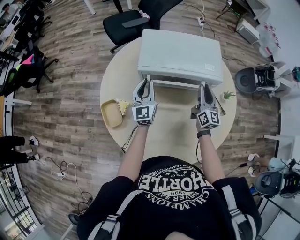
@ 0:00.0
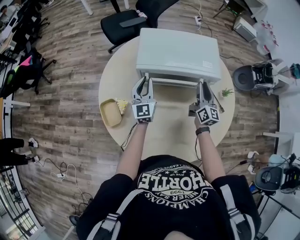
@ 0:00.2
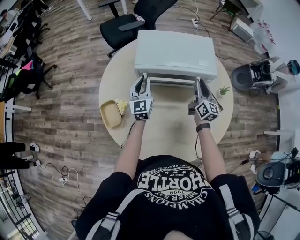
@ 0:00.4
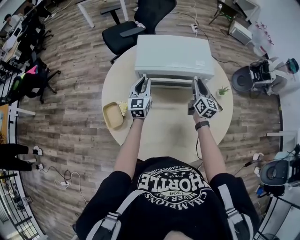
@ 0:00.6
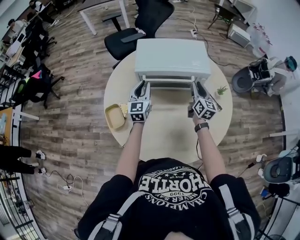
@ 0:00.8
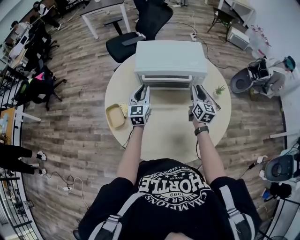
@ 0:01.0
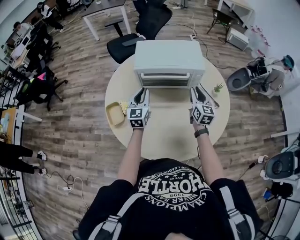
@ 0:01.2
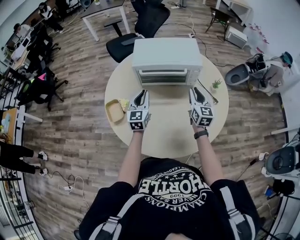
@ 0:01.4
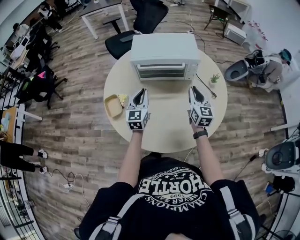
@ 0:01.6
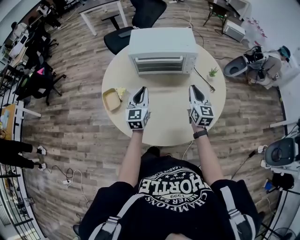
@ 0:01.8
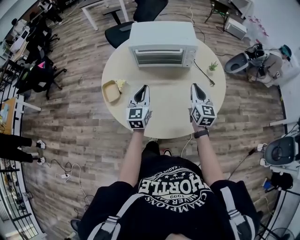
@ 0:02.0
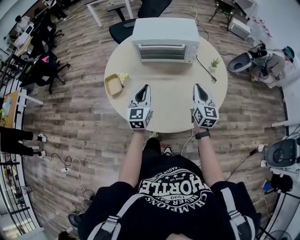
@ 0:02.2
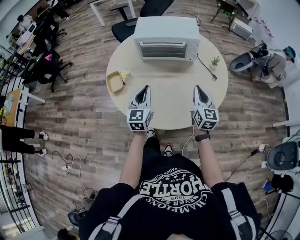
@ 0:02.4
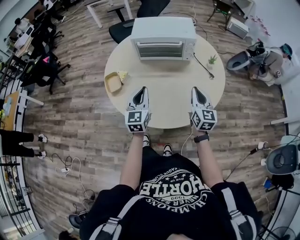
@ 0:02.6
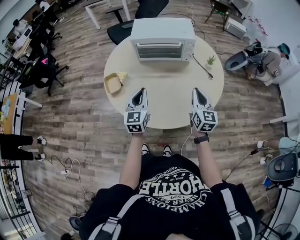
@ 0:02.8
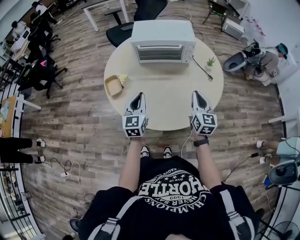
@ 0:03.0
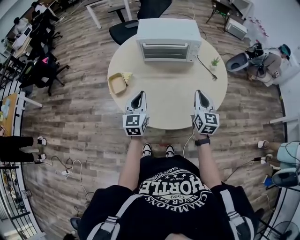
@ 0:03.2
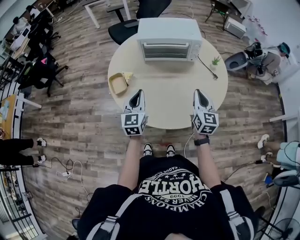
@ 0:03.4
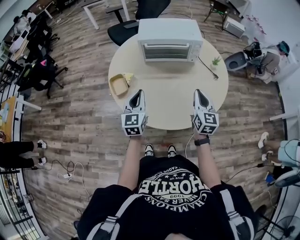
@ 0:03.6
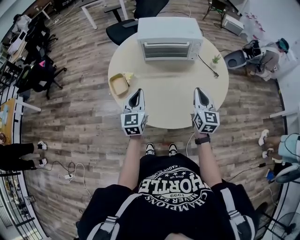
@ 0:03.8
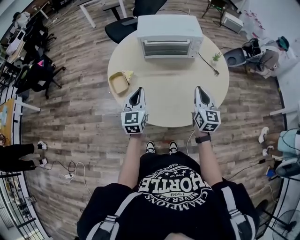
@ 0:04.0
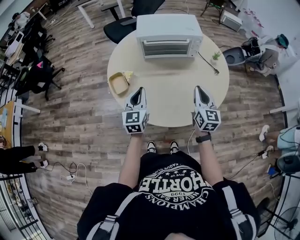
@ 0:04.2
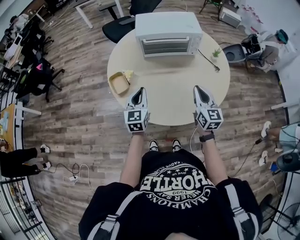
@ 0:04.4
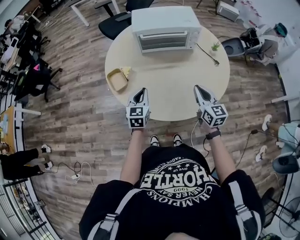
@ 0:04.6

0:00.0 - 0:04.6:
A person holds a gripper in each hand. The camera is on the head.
0:00.0 - 0:01.6: The grippers both shift backward by approximately 20 cm.
0:01.6 - 0:03.0: Both grippers travel together backward, roughly 20 cm.
0:03.0 - 0:04.6: The right gripper travels to the left by about 5 cm. The left gripper shifts approximately 10 cm downward and to the left.

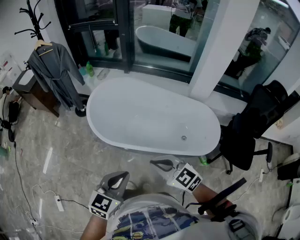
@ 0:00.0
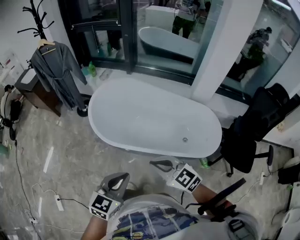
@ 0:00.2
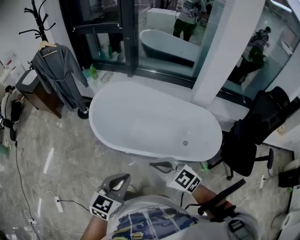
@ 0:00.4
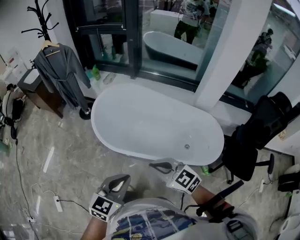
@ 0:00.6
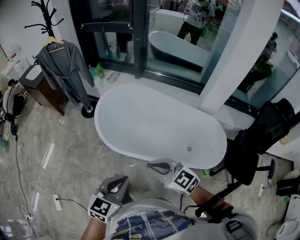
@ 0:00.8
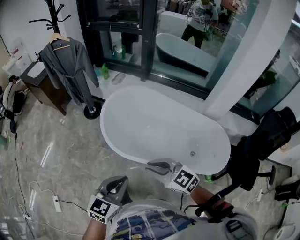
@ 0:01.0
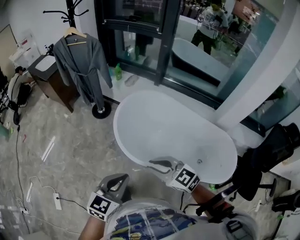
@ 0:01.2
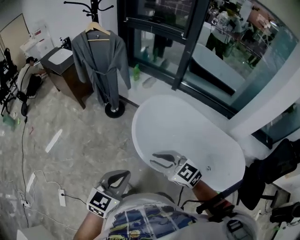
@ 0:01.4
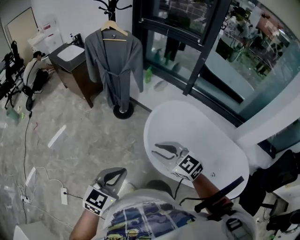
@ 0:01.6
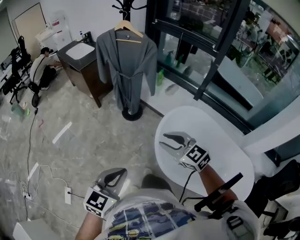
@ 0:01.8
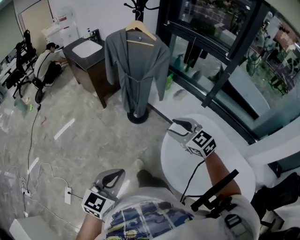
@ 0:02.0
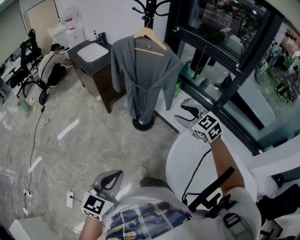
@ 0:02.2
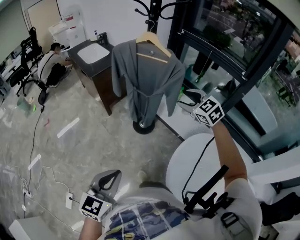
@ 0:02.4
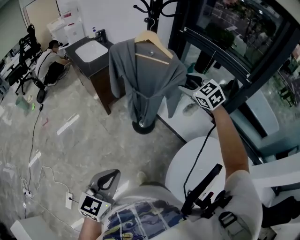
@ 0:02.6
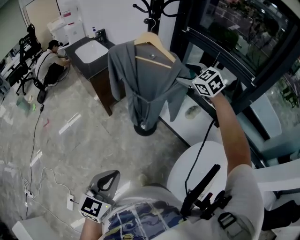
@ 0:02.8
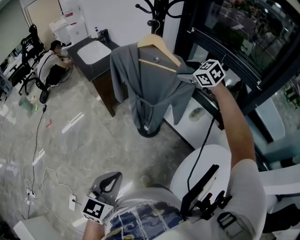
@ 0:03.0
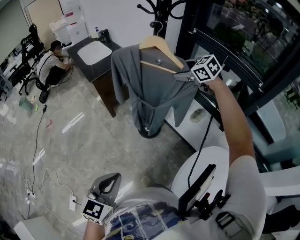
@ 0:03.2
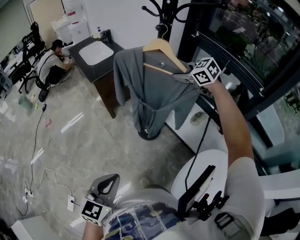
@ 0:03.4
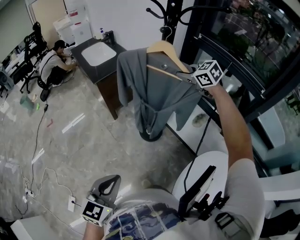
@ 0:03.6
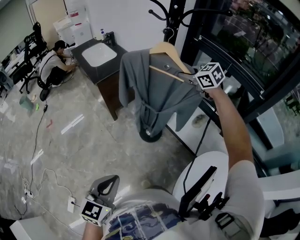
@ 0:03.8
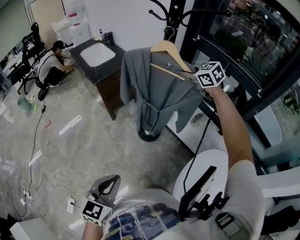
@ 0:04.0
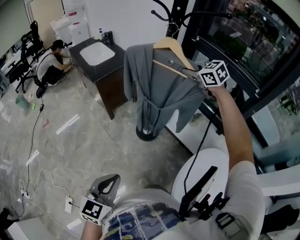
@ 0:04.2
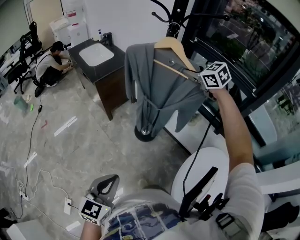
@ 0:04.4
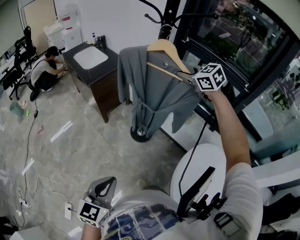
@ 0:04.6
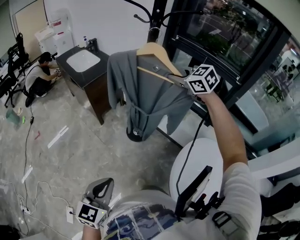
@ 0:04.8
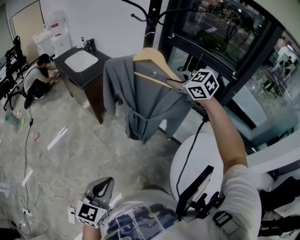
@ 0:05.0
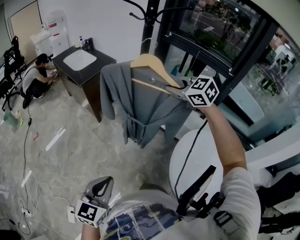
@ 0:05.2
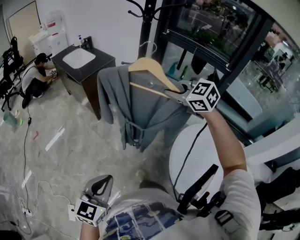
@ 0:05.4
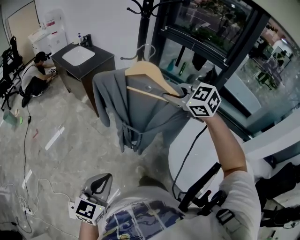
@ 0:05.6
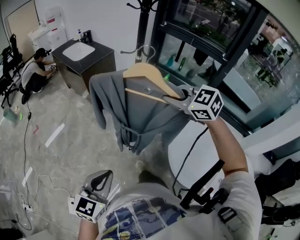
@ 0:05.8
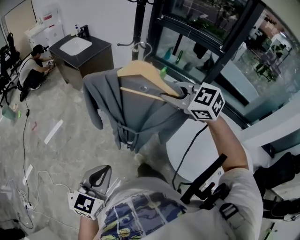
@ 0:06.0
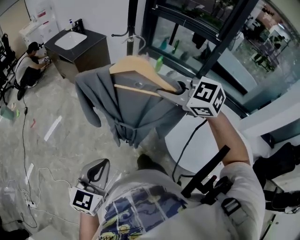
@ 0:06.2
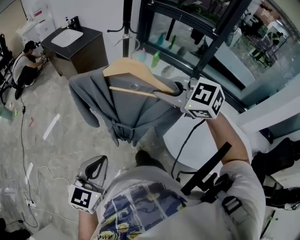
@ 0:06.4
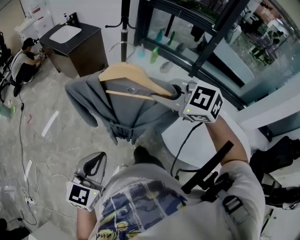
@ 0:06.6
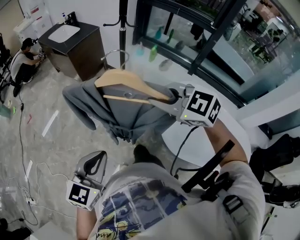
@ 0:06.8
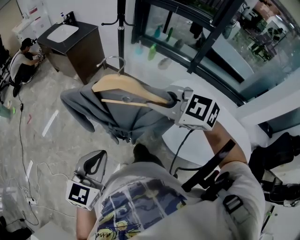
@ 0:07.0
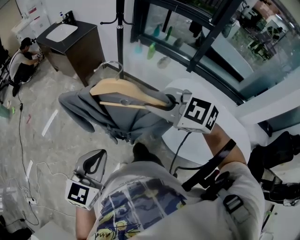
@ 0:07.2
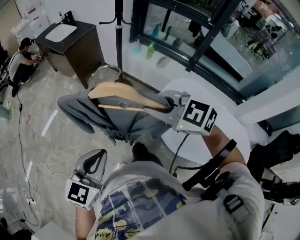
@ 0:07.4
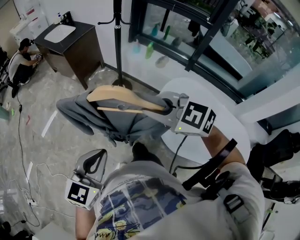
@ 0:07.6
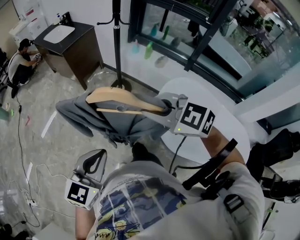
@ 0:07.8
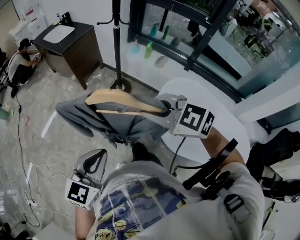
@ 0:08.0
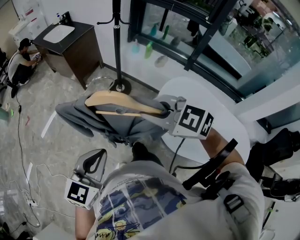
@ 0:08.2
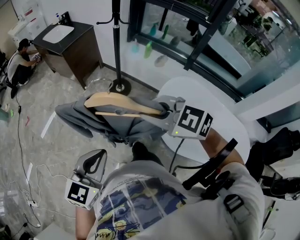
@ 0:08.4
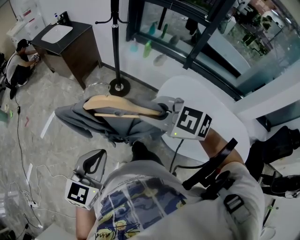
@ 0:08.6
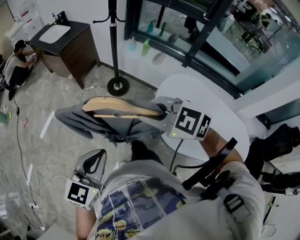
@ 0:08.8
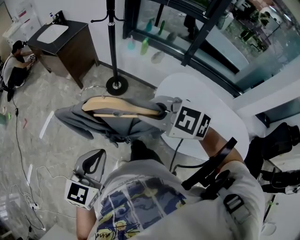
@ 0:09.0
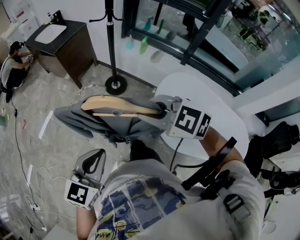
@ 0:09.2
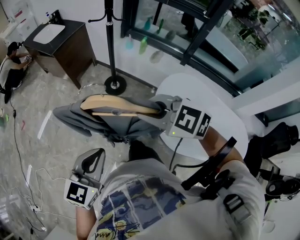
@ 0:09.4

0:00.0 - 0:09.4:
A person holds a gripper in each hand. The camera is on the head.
0:00.0 - 0:01.6: The left gripper travels to the left and forward by roughly 40 cm, while the right gripper shifts some 40 cm forward and to the left.
0:01.6 - 0:03.2: The left gripper heads forward, covering some 35 cm, and changes its angle by approximately 20 degrees; the right gripper heads forward, covering some 70 cm, and opens its fingers.
0:03.2 - 0:04.8: The right gripper travels backward, upward and to the left by roughly 15 cm, and closes its fingers. Meanwhile the left gripper shifts some 10 cm to the left and backward.
0:04.8 - 0:06.2: The left gripper travels backward by some 15 cm; the right gripper heads backward, covering about 35 cm.
0:06.2 - 0:07.8: The right gripper heads backward, covering roughly 10 cm.
0:07.8 - 0:09.4: The grippers make only small movements.

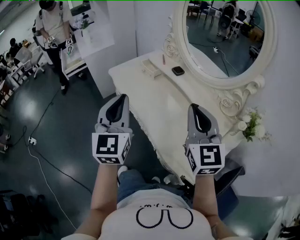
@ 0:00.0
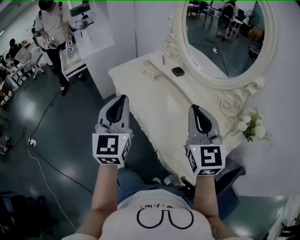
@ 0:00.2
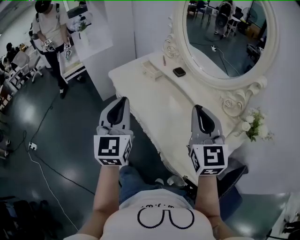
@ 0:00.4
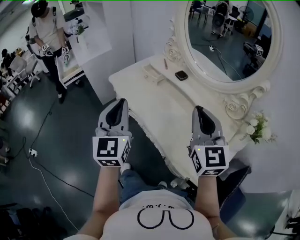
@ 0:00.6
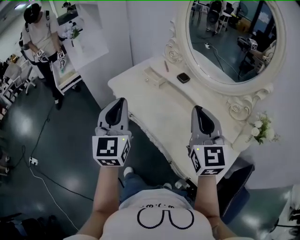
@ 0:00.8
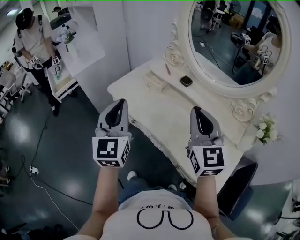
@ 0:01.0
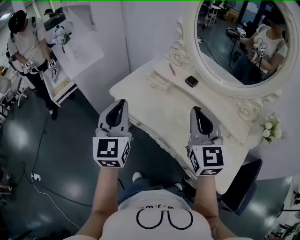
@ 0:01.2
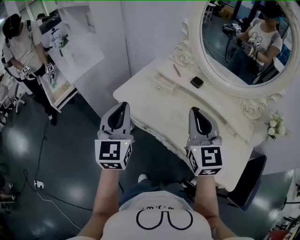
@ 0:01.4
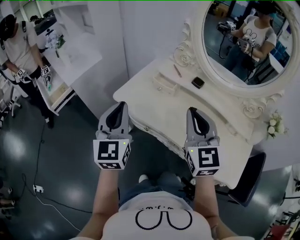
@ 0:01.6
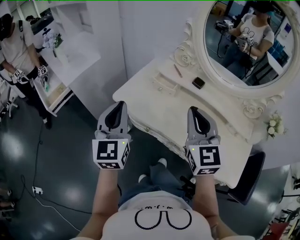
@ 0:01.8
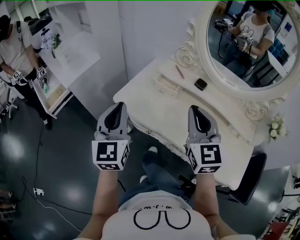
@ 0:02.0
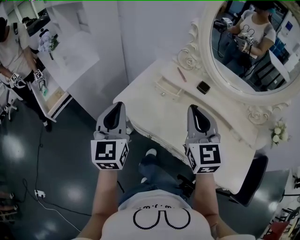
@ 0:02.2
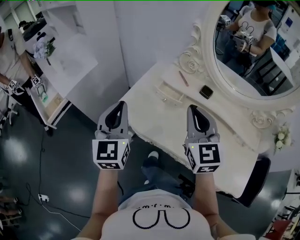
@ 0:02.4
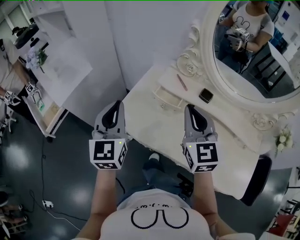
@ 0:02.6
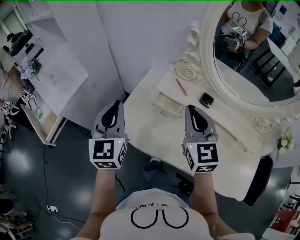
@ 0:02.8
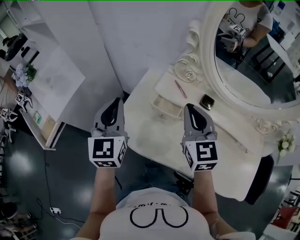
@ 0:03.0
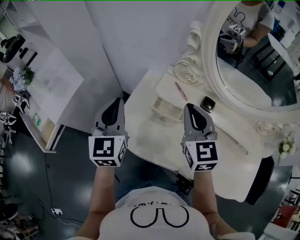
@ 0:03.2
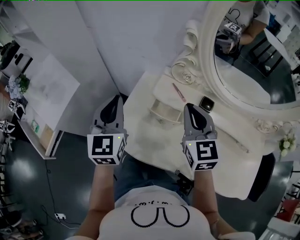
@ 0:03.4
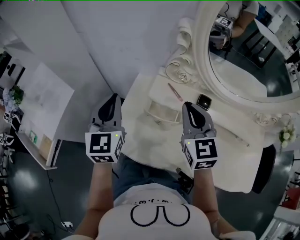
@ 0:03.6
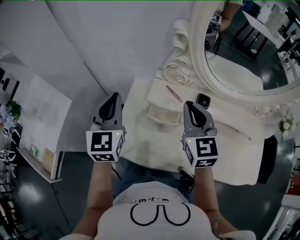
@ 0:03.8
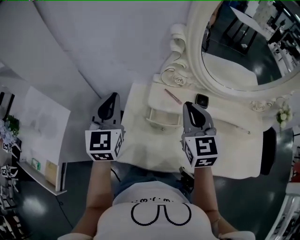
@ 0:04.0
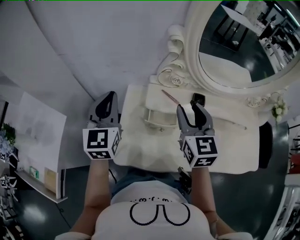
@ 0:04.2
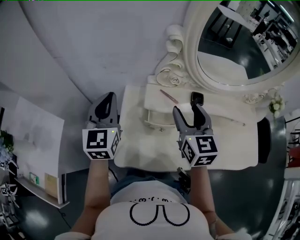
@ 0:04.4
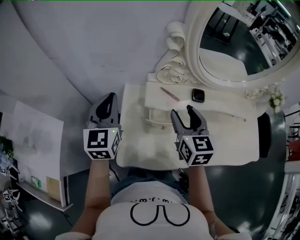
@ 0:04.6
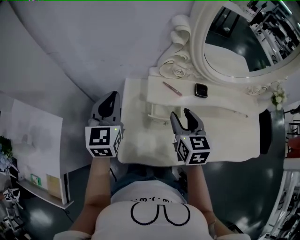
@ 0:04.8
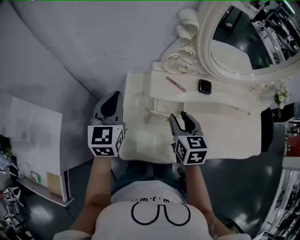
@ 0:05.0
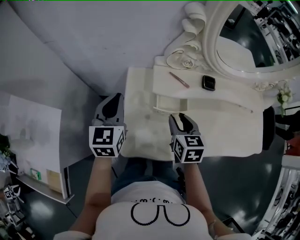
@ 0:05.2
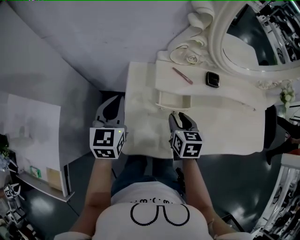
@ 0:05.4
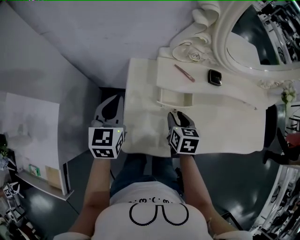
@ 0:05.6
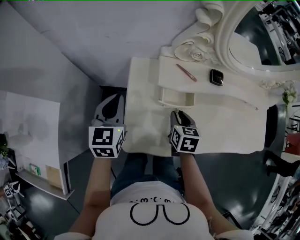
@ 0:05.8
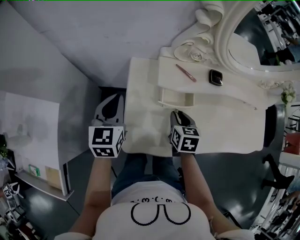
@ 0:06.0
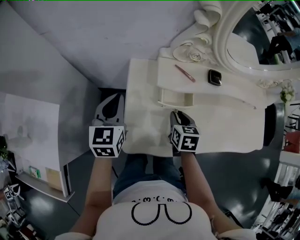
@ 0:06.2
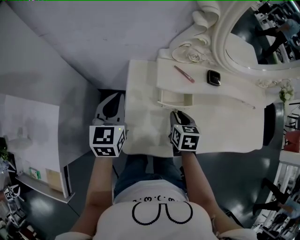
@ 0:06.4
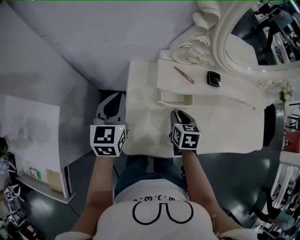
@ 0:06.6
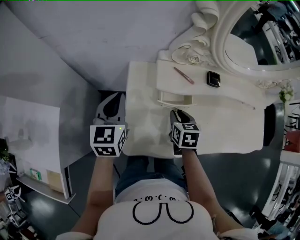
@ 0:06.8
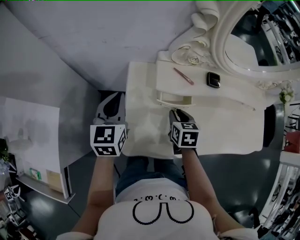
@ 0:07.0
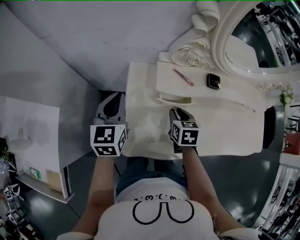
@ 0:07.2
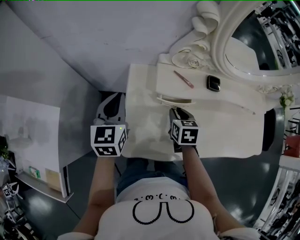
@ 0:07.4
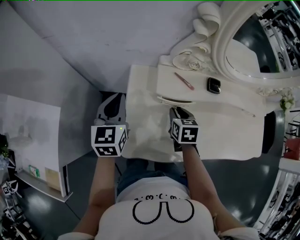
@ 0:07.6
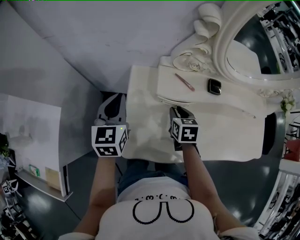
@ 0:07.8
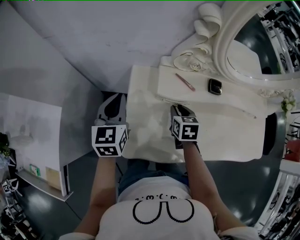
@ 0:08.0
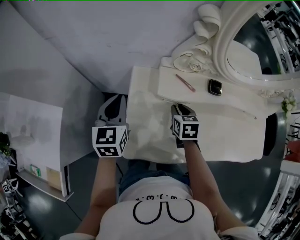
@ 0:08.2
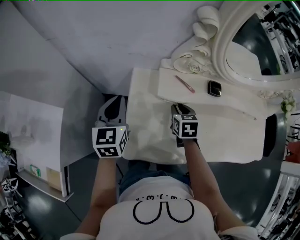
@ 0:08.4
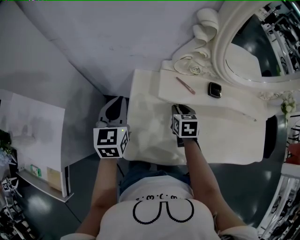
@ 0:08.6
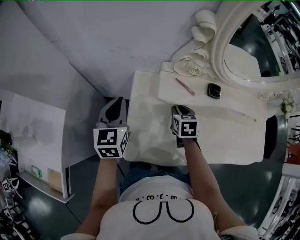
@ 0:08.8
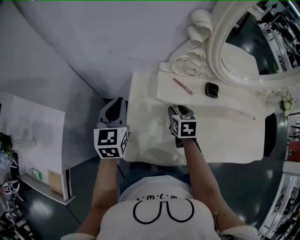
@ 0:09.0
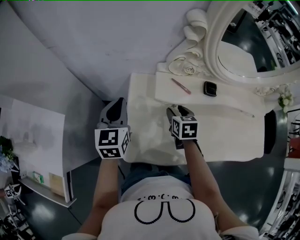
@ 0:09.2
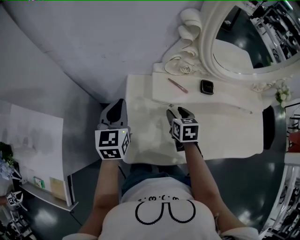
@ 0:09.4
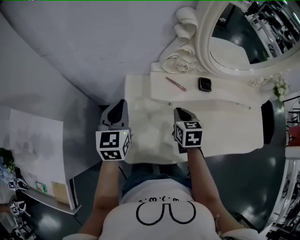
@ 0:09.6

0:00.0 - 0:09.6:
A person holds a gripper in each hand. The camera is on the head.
0:00.0 - 0:01.6: Both grippers move to the left and forward, about 30 cm.
0:01.6 - 0:03.2: Both grippers travel together forward, approximately 30 cm.
0:03.2 - 0:04.8: The right gripper moves downward, approximately 10 cm, rotates some 40 degrees, and opens up. Meanwhile the left gripper ends up roughly 15 cm from where it was, and changes its angle by approximately 30 degrees.
0:04.8 - 0:06.4: The left gripper travels downward by about 10 cm, while the right gripper goes roughly 15 cm downward, rotates some 20 degrees, and closes.
0:06.4 - 0:08.0: The right gripper is displaced forward by about 5 cm.
0:08.0 - 0:09.6: The right gripper is displaced upward by about 5 cm, and closes.
